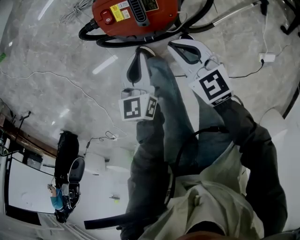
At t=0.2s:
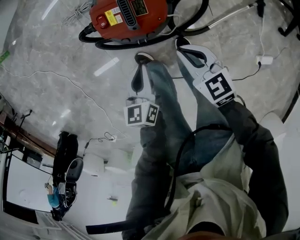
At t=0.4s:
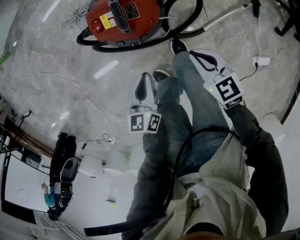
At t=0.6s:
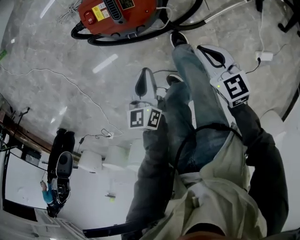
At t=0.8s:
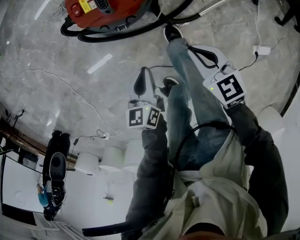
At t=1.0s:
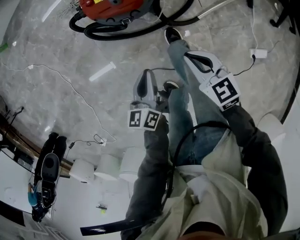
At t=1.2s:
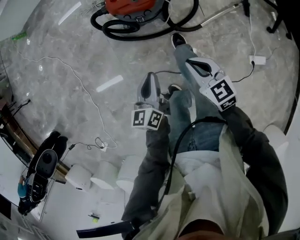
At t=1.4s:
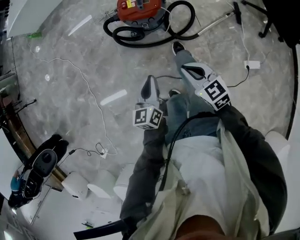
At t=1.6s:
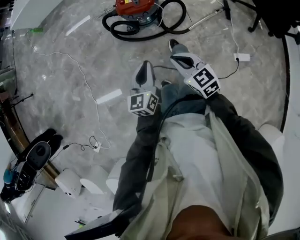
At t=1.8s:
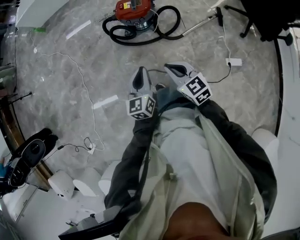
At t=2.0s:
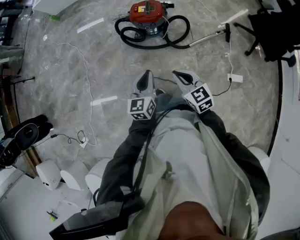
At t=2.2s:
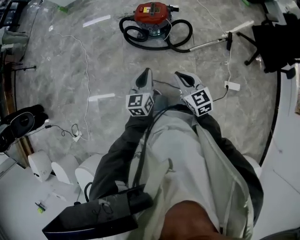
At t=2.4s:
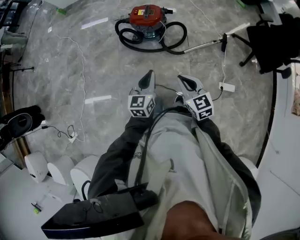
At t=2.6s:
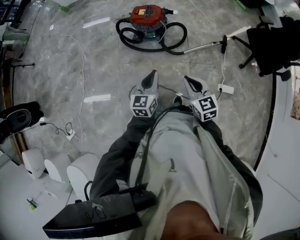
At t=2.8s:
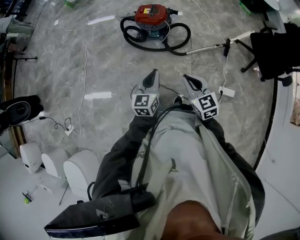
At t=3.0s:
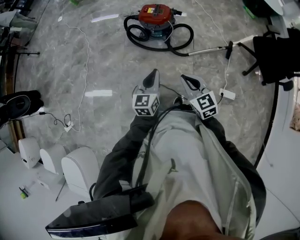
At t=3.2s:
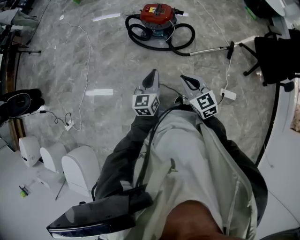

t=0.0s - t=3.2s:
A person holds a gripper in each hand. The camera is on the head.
t=0.0s - t=1.6s: The grippers both shift backward and upward by about 50 cm. The left gripper rotates some 20 degrees.
t=1.6s - t=3.2s: Both grippers move backward, upward and to the right, about 20 cm.

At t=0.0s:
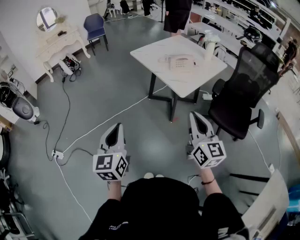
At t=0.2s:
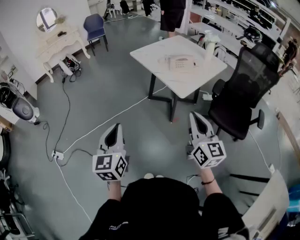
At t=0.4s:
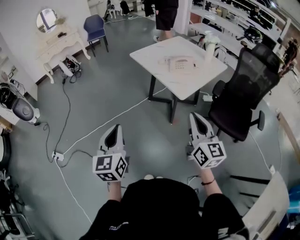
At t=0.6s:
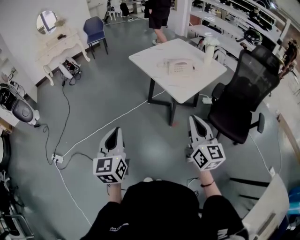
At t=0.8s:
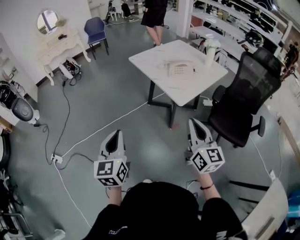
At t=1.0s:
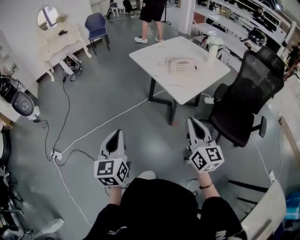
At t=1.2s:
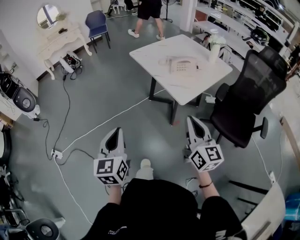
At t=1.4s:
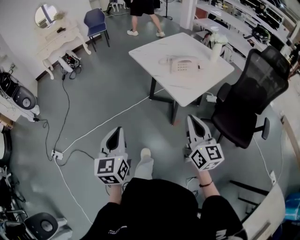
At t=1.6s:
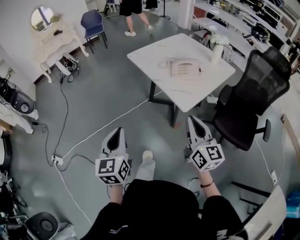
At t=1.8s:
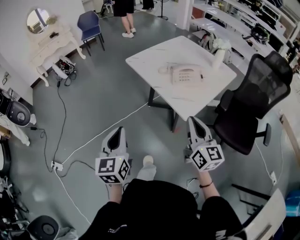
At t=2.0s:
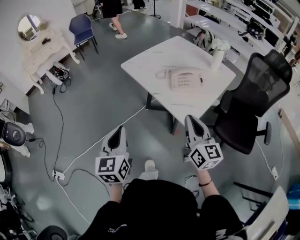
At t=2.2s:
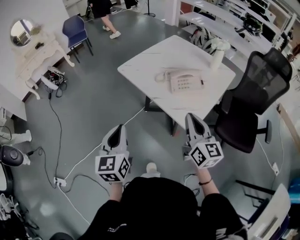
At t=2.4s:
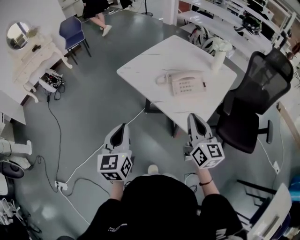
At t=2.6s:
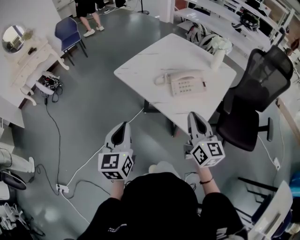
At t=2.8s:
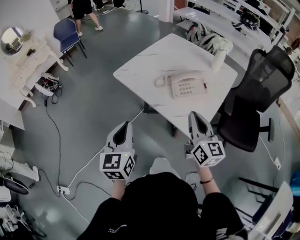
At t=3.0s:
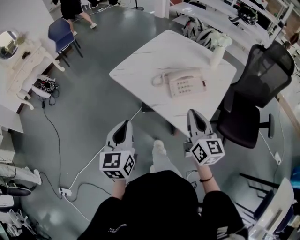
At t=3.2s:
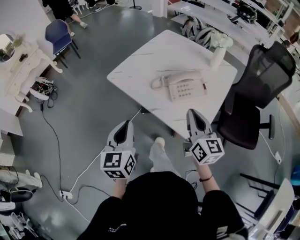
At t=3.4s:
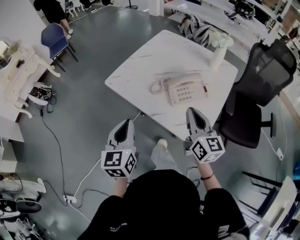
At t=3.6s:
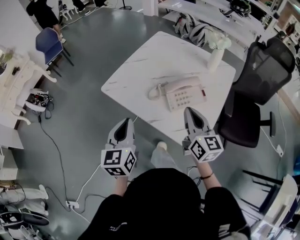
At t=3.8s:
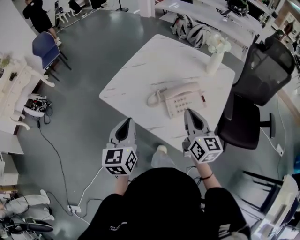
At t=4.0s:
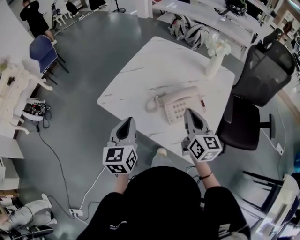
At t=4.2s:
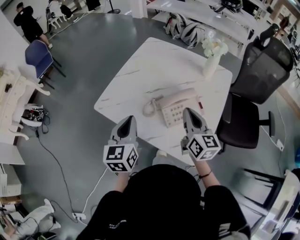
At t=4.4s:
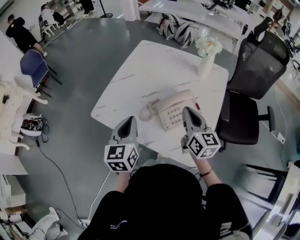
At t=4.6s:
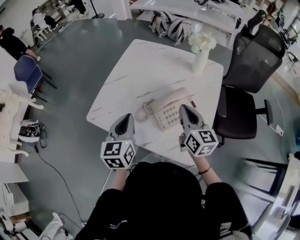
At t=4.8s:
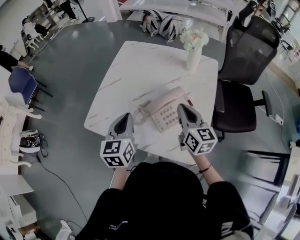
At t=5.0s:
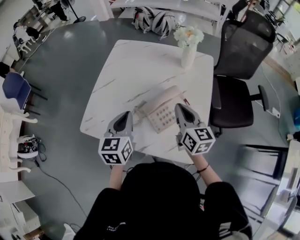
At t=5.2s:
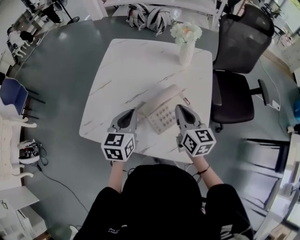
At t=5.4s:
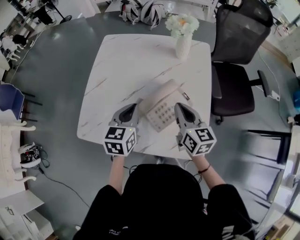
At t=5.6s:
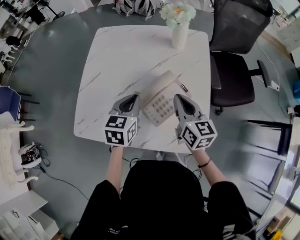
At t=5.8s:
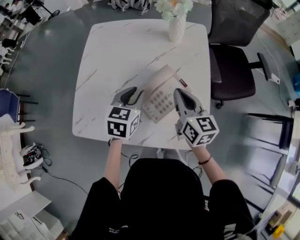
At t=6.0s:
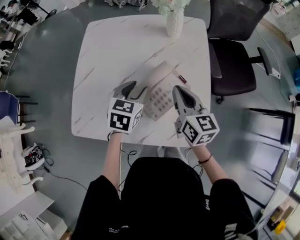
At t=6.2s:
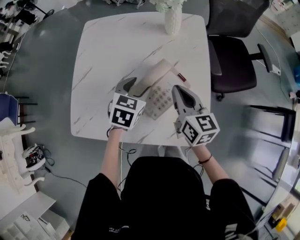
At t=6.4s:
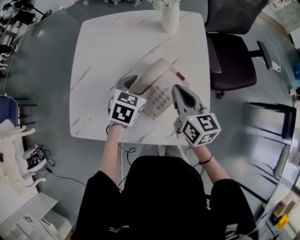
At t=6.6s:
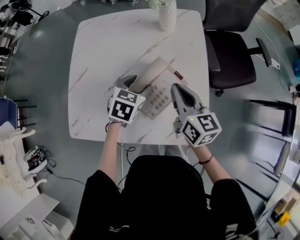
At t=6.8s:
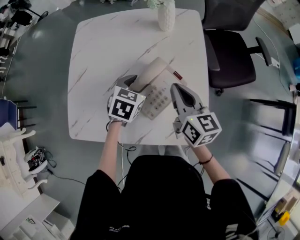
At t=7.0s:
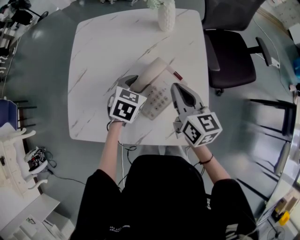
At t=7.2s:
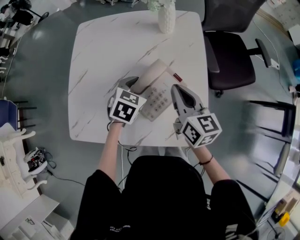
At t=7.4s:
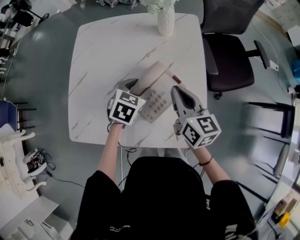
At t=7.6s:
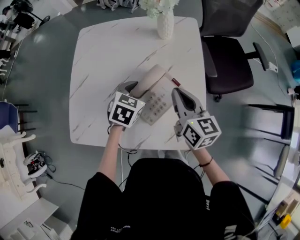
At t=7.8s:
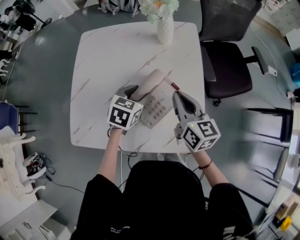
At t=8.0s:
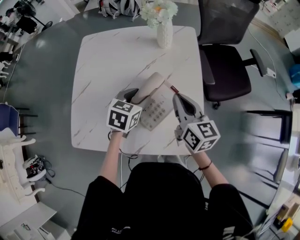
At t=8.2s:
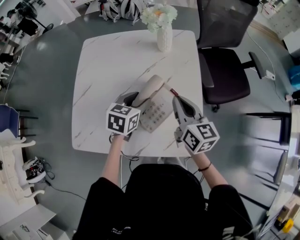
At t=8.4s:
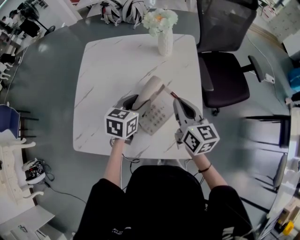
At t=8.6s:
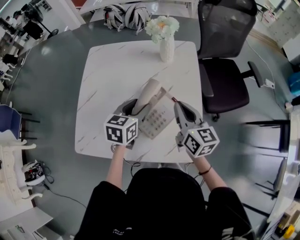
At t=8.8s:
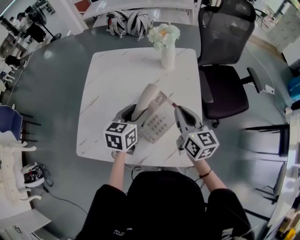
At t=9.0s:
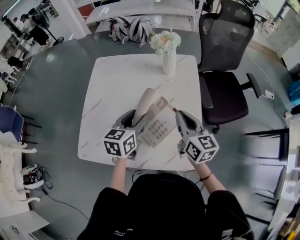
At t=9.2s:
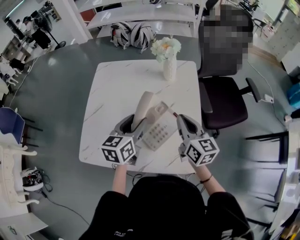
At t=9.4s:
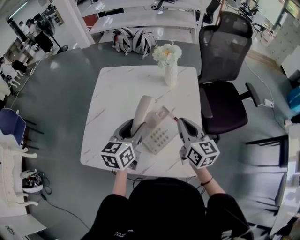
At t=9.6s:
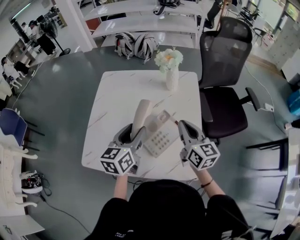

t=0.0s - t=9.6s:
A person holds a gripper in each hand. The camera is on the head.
t=0.0s - t=1.6s: The left gripper shifts approximately 15 cm forward. The right gripper moves forward and downward, about 15 cm.
t=1.6s - t=3.2s: Both grippers move forward, some 30 cm.
t=3.2s - t=4.8s: Both grippers travel together forward, some 25 cm. The left gripper turns by about 20 degrees.
t=4.8s - t=6.4s: The right gripper travels downward by some 5 cm. The left gripper moves some 25 cm, swivels approximately 50 degrees, and opens its fingers.
t=6.4s - t=8.0s: The grippers stay close to where they were, moving slightly.
t=8.0s - t=9.6s: The left gripper travels upward and to the left by about 15 cm, and rotates some 30 degrees. The right gripper goes about 5 cm upward.

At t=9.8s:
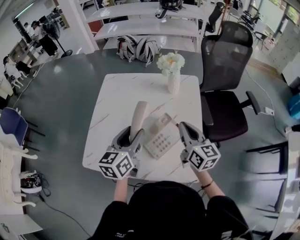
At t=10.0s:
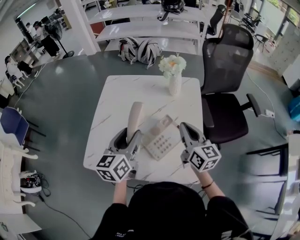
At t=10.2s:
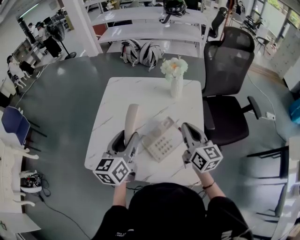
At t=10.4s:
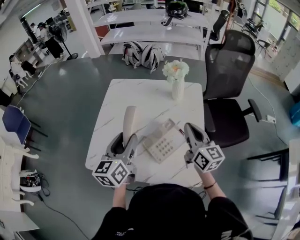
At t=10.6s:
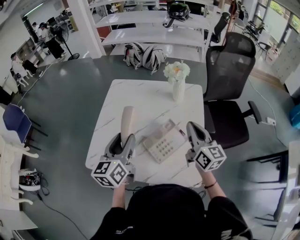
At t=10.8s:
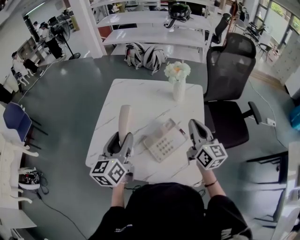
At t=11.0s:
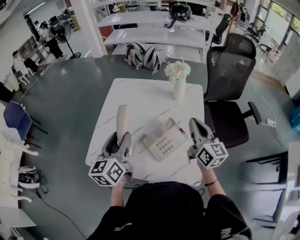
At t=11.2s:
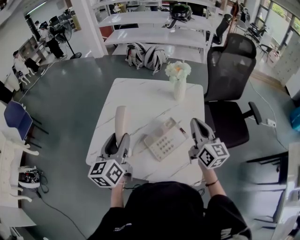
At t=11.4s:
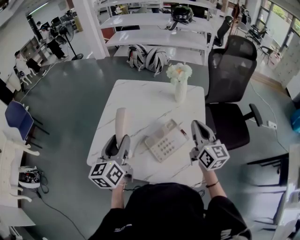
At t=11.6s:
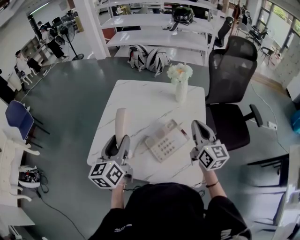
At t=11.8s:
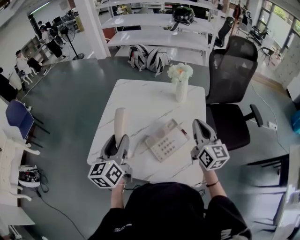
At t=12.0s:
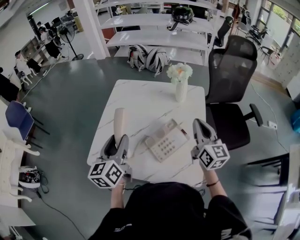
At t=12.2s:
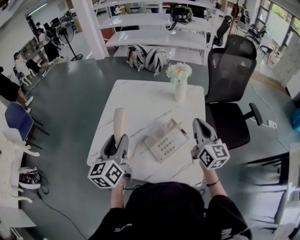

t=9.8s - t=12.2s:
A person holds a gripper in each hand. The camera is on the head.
t=9.8s - t=11.0s: The left gripper is displaced to the left by approximately 10 cm, while the right gripper moves roughly 5 cm.
t=11.0s - t=12.2s: The grippers move only a little.

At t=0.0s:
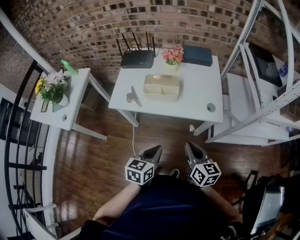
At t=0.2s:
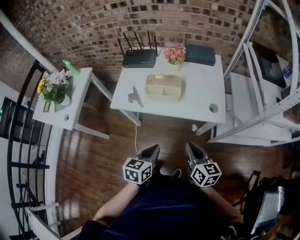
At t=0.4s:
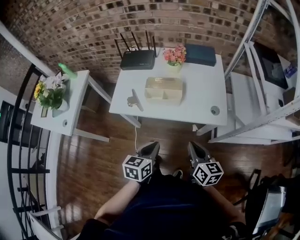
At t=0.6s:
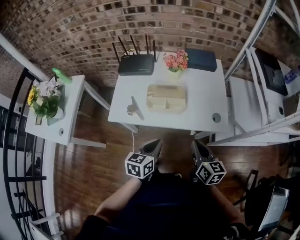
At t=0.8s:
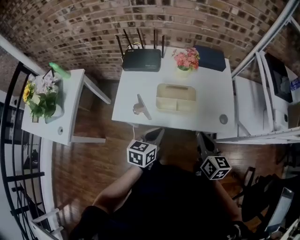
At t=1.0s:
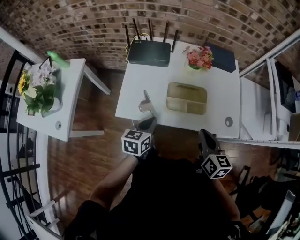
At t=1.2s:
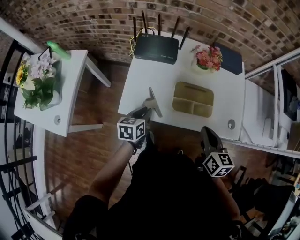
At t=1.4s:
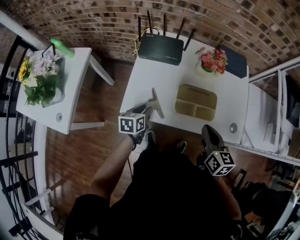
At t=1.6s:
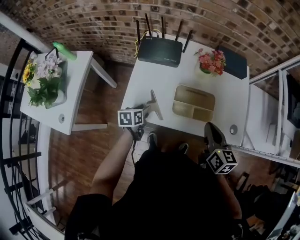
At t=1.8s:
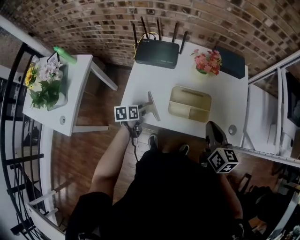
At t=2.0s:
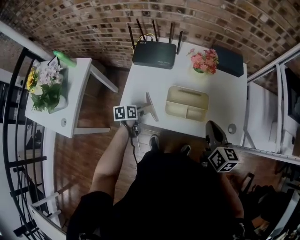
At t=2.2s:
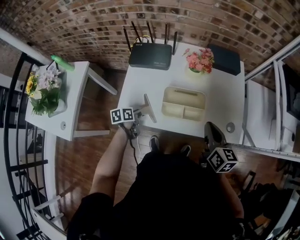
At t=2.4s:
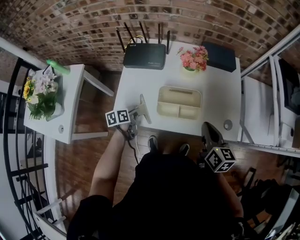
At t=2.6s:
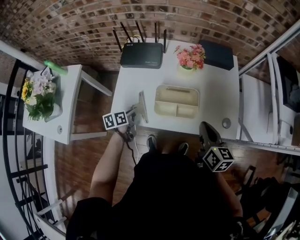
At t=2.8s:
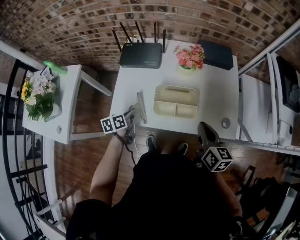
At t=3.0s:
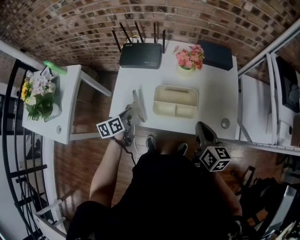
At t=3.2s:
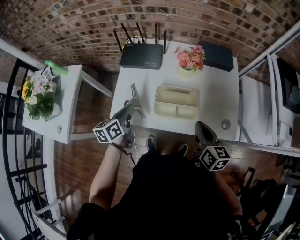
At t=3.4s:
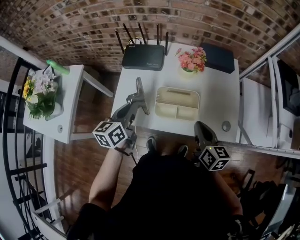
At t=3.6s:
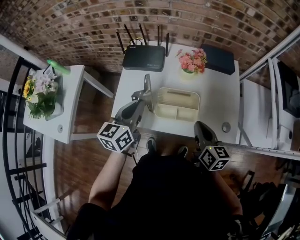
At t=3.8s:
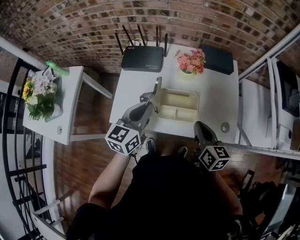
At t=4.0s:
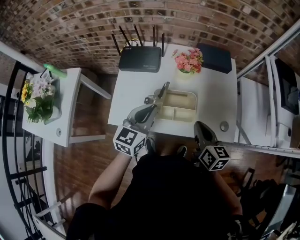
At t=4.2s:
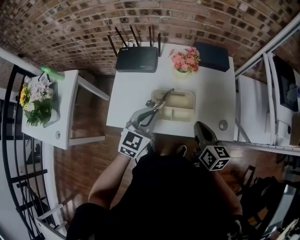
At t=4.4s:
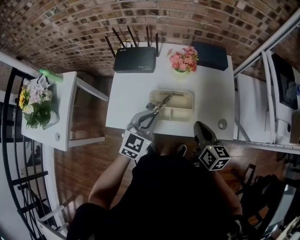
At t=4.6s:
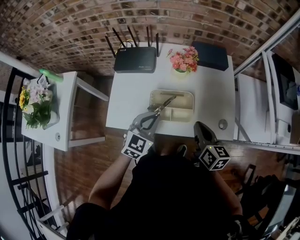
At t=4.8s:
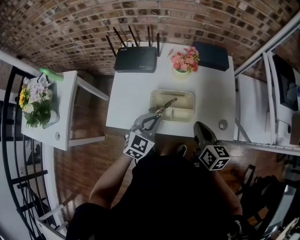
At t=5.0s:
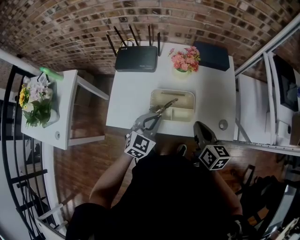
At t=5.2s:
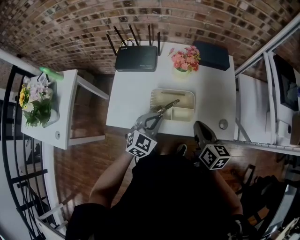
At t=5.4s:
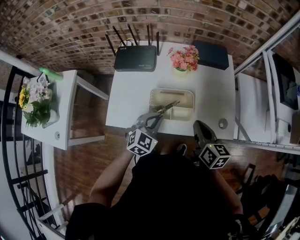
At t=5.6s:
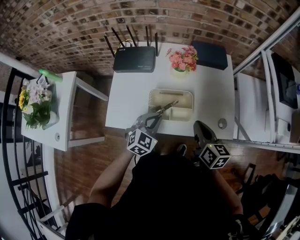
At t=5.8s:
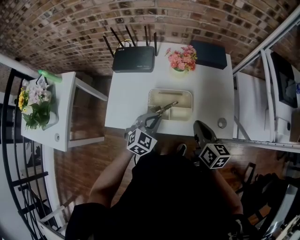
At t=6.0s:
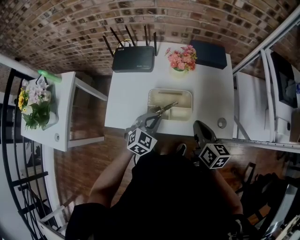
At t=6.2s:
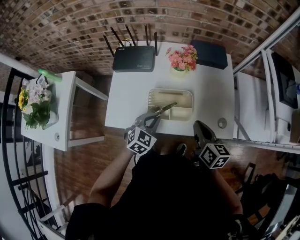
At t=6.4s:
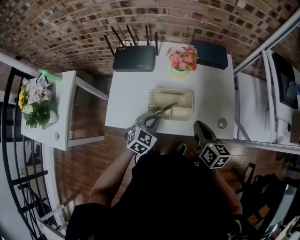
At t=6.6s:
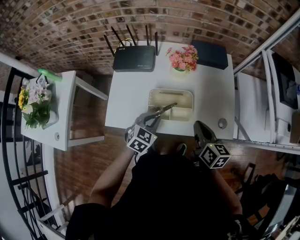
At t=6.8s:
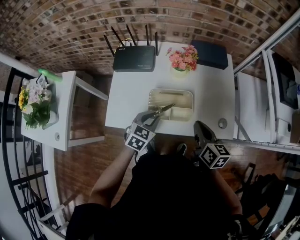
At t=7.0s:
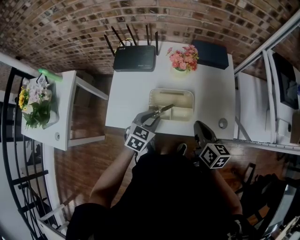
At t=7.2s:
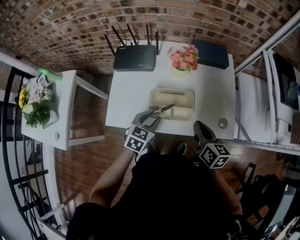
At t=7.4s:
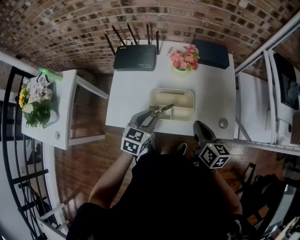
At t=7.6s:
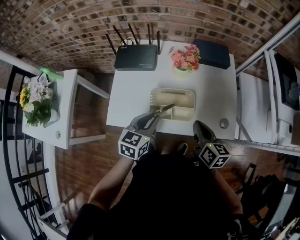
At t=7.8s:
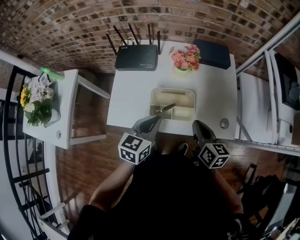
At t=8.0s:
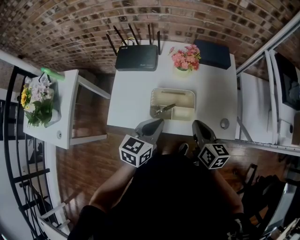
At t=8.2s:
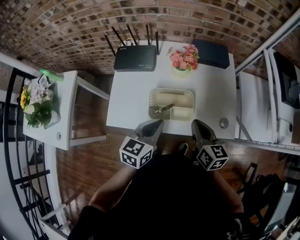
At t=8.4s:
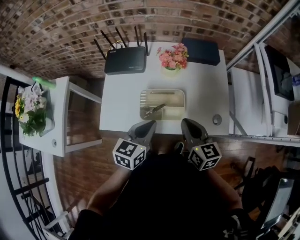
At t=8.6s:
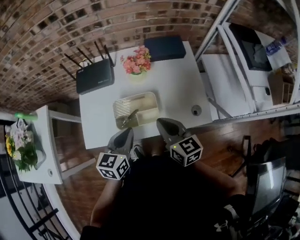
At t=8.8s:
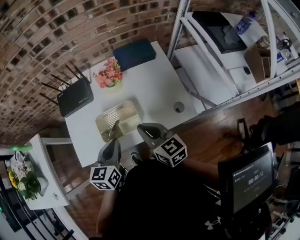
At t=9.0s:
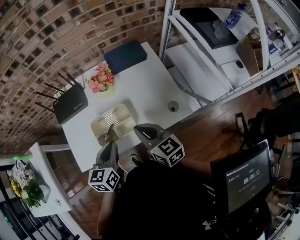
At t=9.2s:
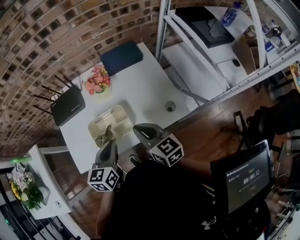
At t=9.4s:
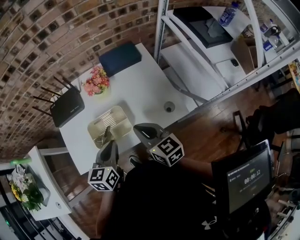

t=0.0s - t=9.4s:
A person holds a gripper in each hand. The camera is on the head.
t=0.0s - t=1.6s: The right gripper heads forward and to the left, covering about 25 cm. The left gripper goes about 40 cm forward, to the left and downward, rotates about 20 degrees, and opens.
t=1.6s - t=3.2s: The left gripper goes about 15 cm upward, turns by approximately 20 degrees, and closes up.
t=3.2s - t=4.8s: The left gripper travels to the right by about 15 cm, and twists some 60 degrees clockwise, seen from behind.
t=4.8s - t=6.2s: The left gripper shifts some 5 cm downward.
t=6.2s - t=7.8s: The left gripper moves upward, about 10 cm, rotates roughly 30 degrees, and opens, then closes again.
t=7.8s - t=9.4s: The left gripper travels to the right by some 5 cm.
